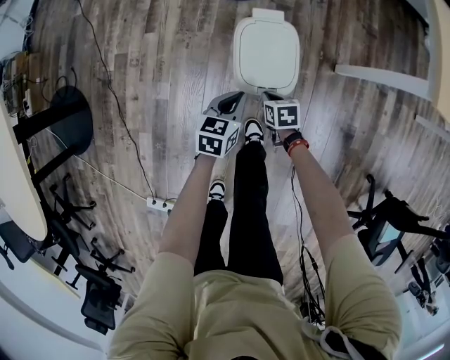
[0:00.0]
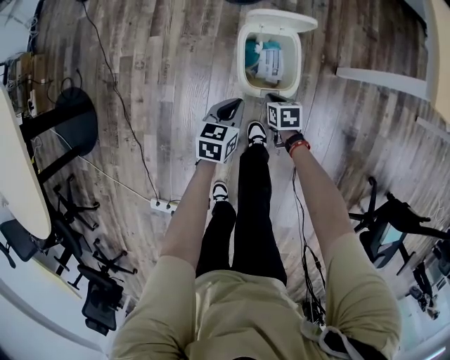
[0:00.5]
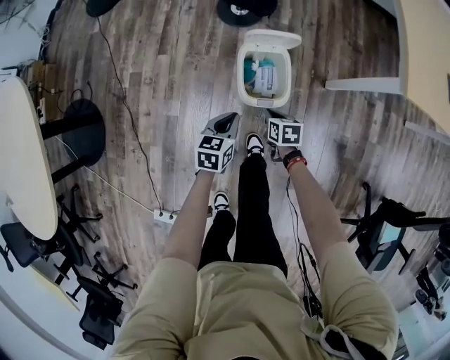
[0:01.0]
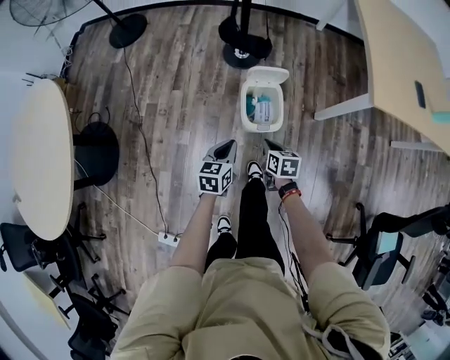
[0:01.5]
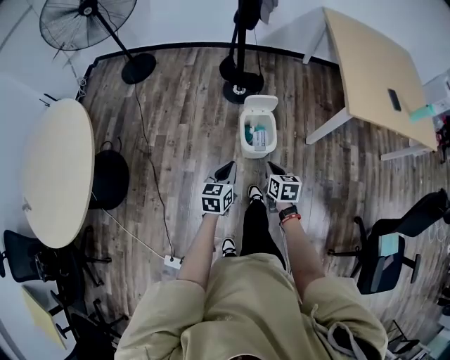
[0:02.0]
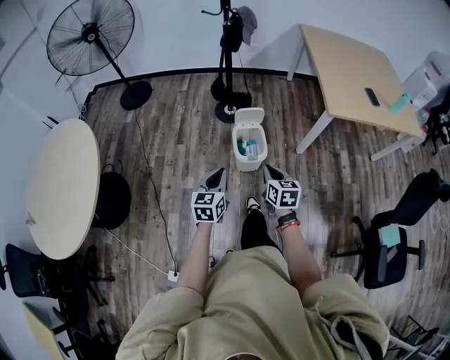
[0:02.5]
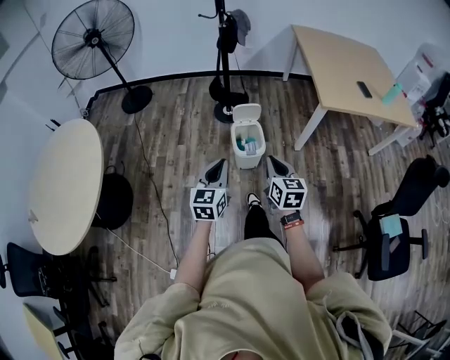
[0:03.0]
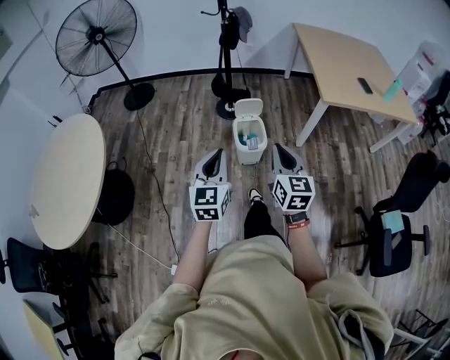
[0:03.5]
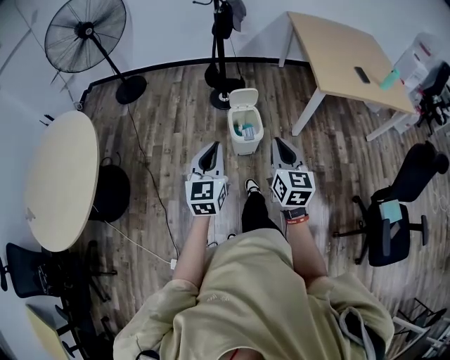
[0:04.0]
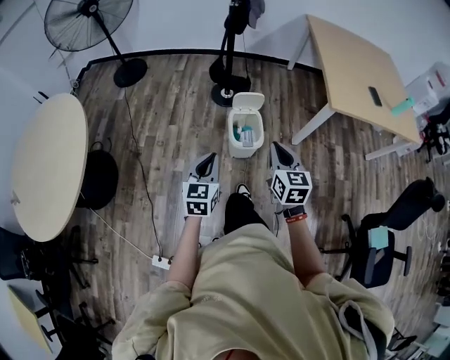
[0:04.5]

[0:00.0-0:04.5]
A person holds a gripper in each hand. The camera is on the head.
0:00.0 to 0:02.0: The two grippers go some 50 cm upward and backward. The right gripper turns by approximately 30 degrees.
0:02.0 to 0:04.5: The left gripper is displaced upward and backward by roughly 10 cm. The right gripper shifts roughly 20 cm upward, and turns by approximately 30 degrees.

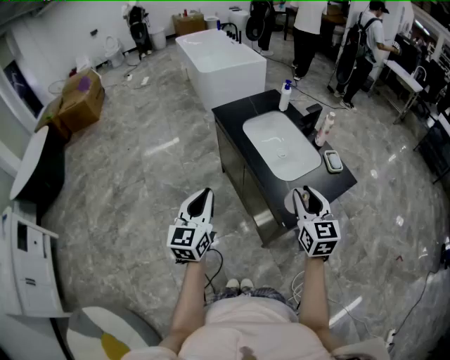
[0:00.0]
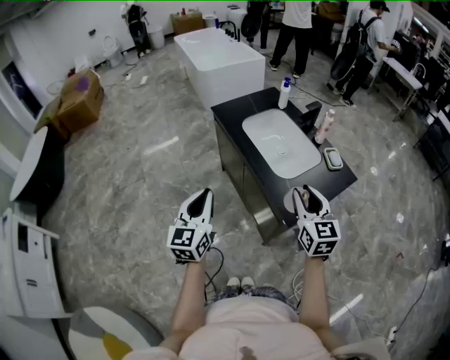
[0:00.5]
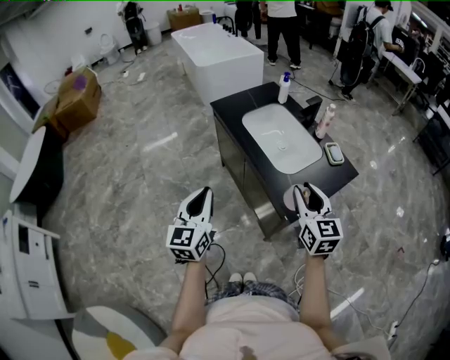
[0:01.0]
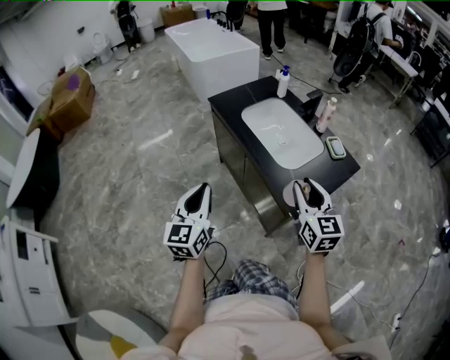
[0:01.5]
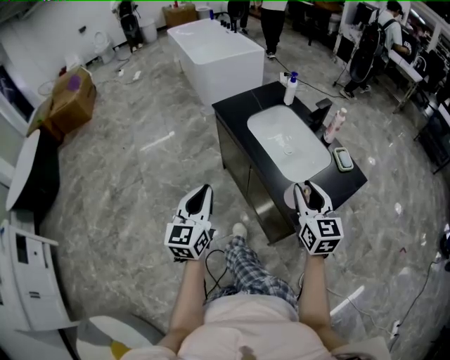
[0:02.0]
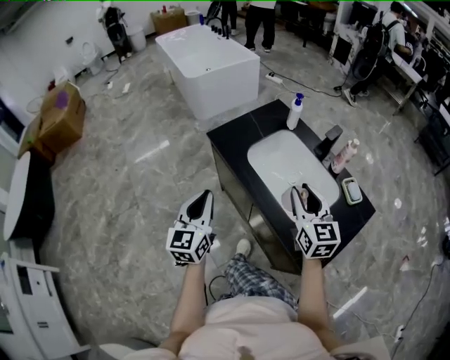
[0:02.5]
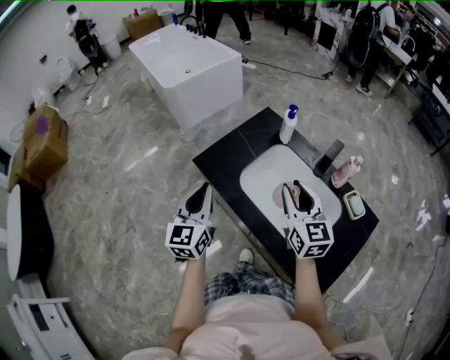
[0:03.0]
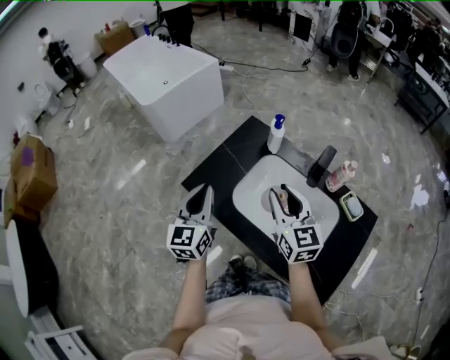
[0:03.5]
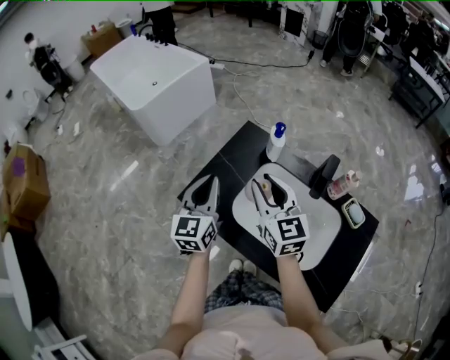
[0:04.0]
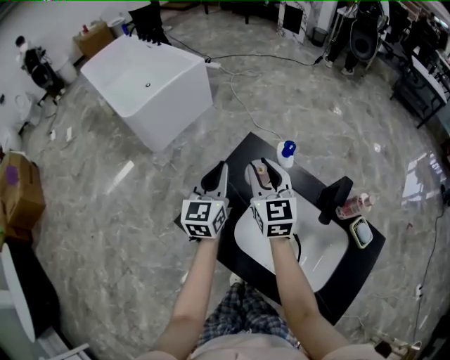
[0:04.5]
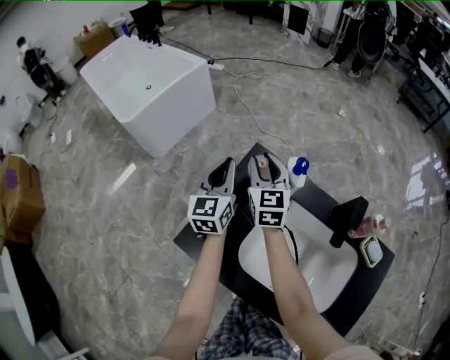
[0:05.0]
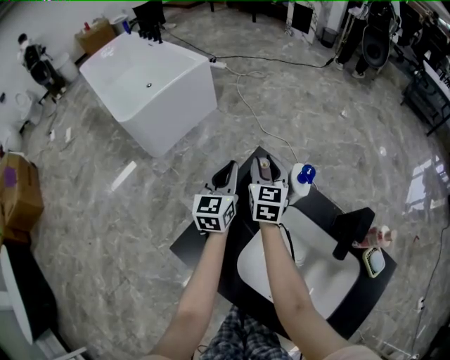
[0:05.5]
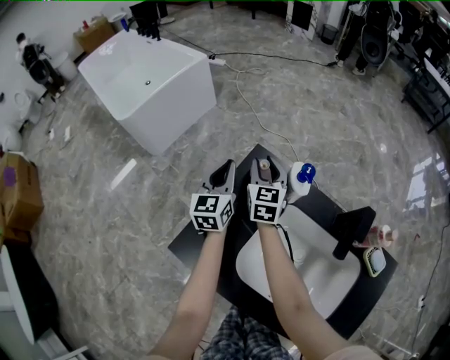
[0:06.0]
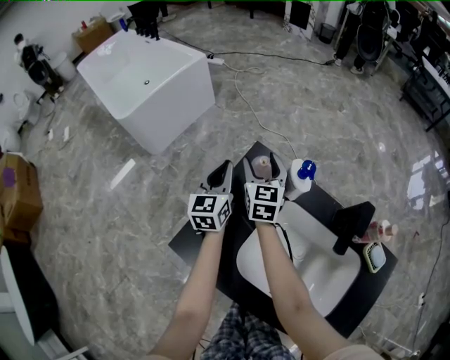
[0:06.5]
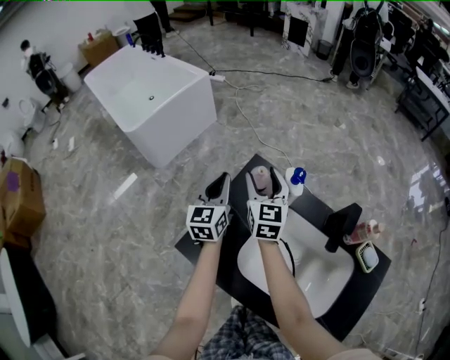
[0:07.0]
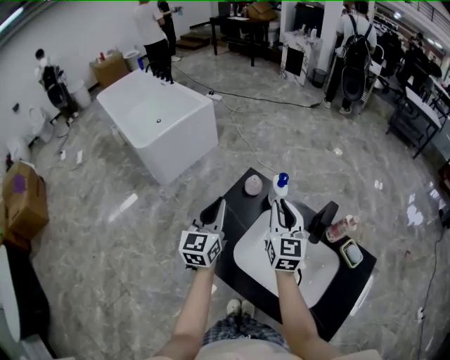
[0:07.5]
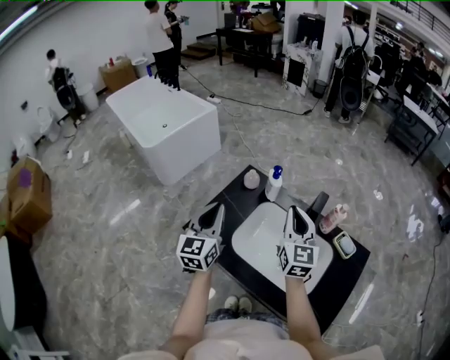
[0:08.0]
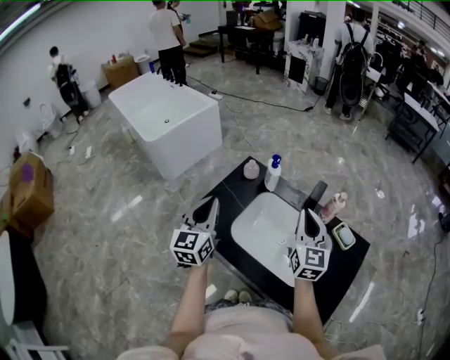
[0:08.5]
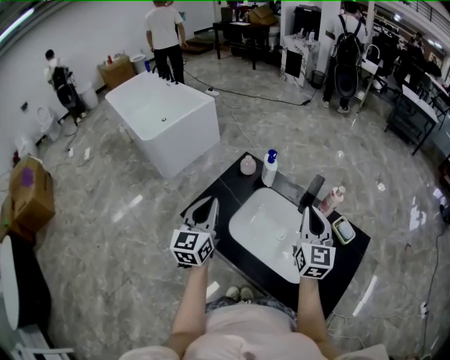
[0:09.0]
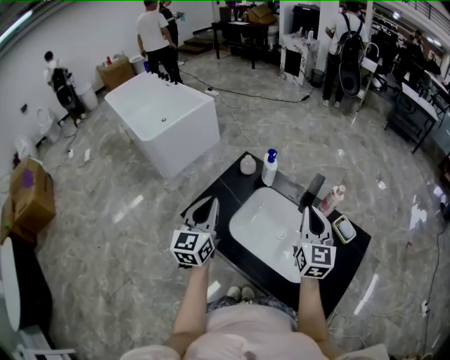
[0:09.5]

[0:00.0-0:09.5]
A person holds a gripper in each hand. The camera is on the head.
0:00.0 to 0:02.0: Both grippers move forward, roughly 5 cm.
0:02.0 to 0:04.0: The two grippers travel together, forward, approximately 50 cm. The left gripper turns by about 20 degrees.
0:04.0 to 0:05.5: The grippers both shift forward and downward by some 35 cm.
0:05.5 to 0:07.5: The right gripper moves backward, upward and to the right, some 30 cm, and opens, then closes again. Meanwhile the left gripper goes about 25 cm backward and upward.
0:07.5 to 0:09.5: The right gripper moves backward and to the right, about 20 cm, while the left gripper travels backward by approximately 15 cm.

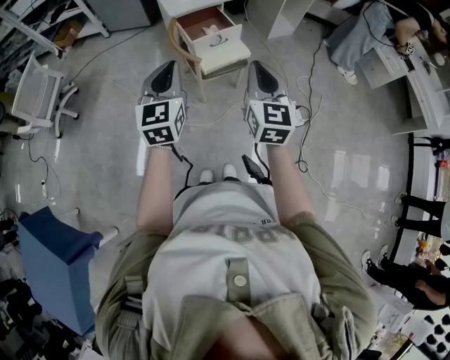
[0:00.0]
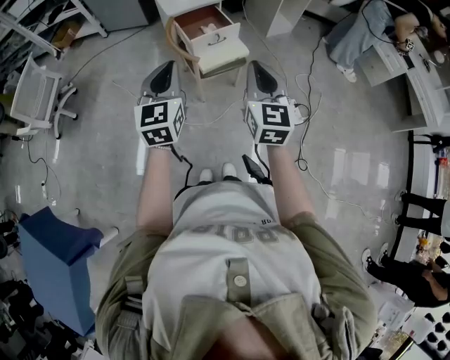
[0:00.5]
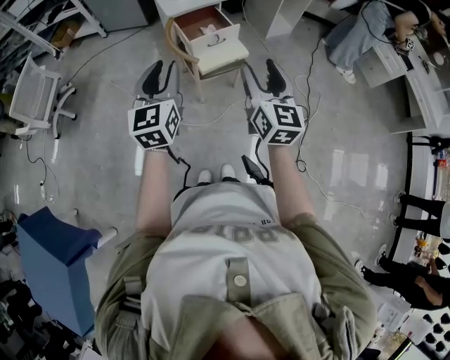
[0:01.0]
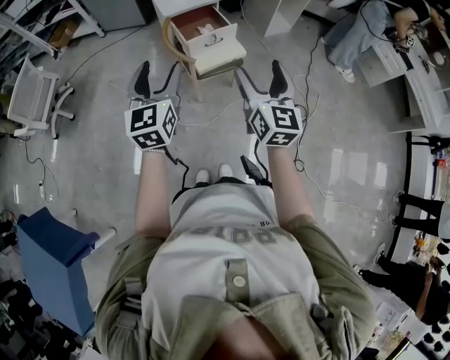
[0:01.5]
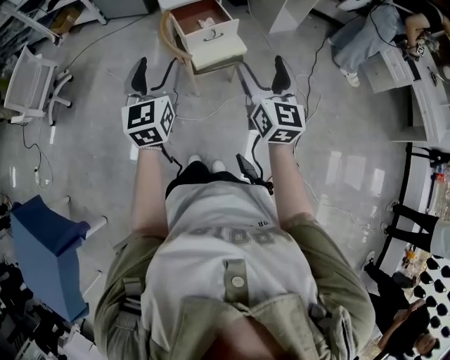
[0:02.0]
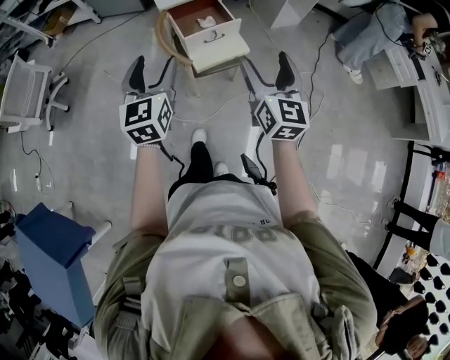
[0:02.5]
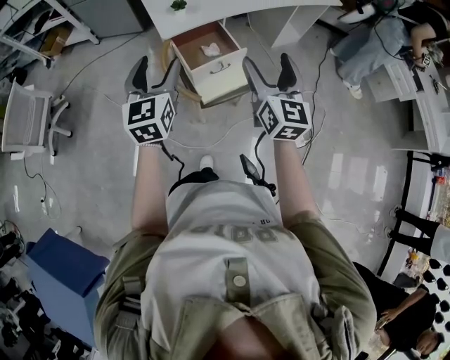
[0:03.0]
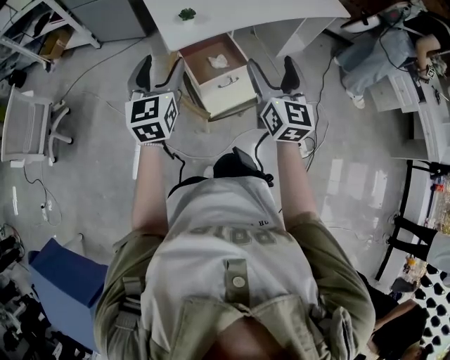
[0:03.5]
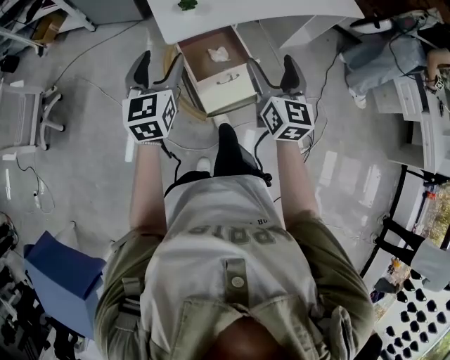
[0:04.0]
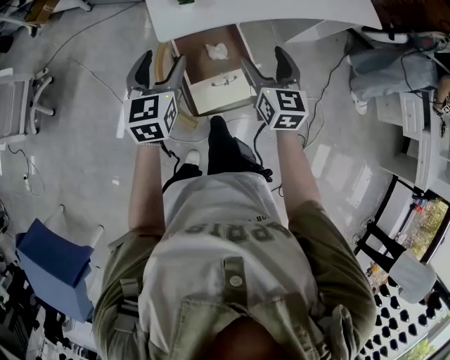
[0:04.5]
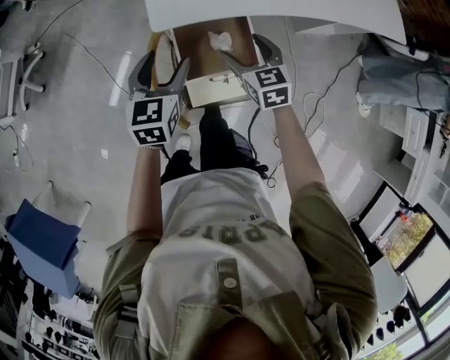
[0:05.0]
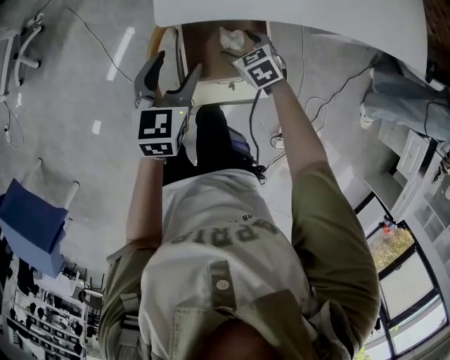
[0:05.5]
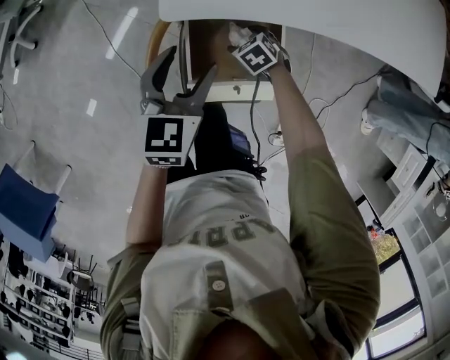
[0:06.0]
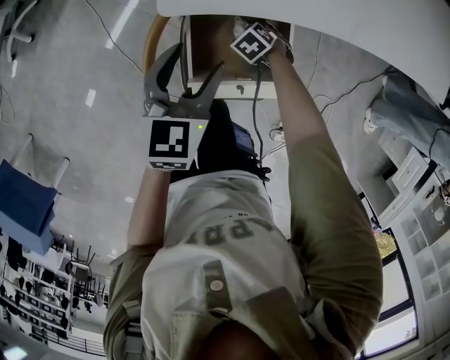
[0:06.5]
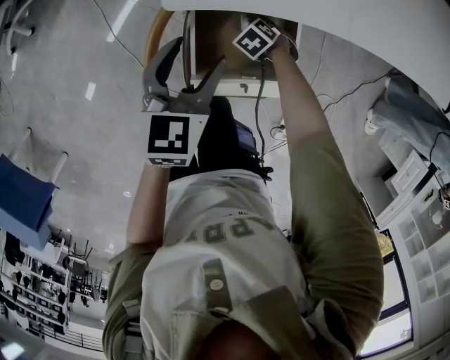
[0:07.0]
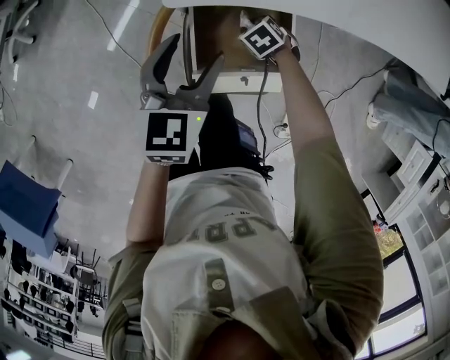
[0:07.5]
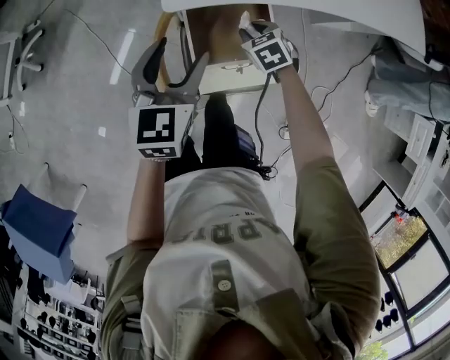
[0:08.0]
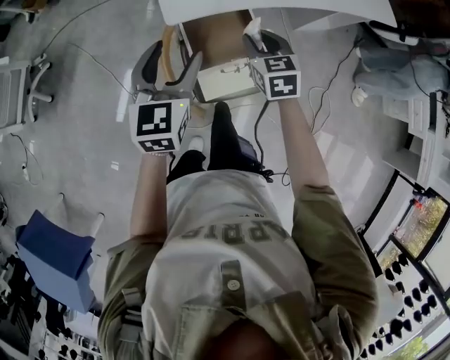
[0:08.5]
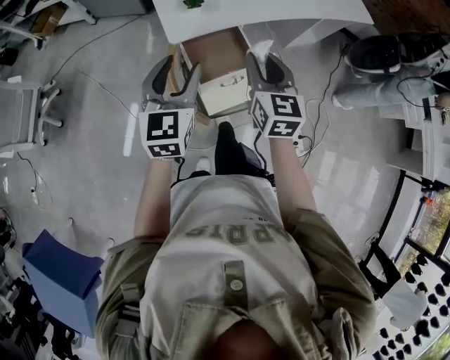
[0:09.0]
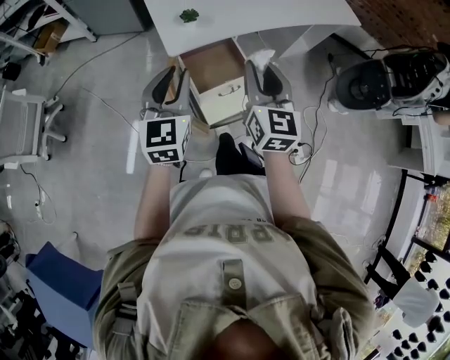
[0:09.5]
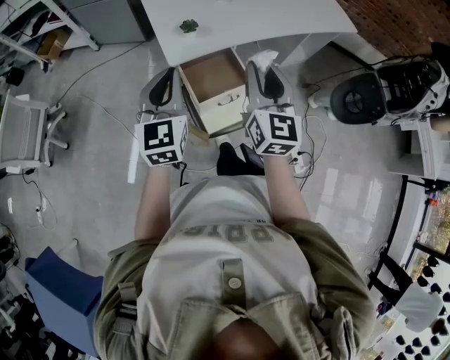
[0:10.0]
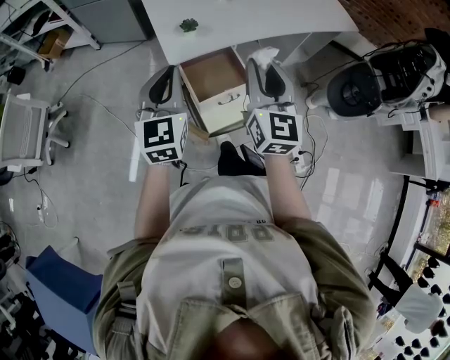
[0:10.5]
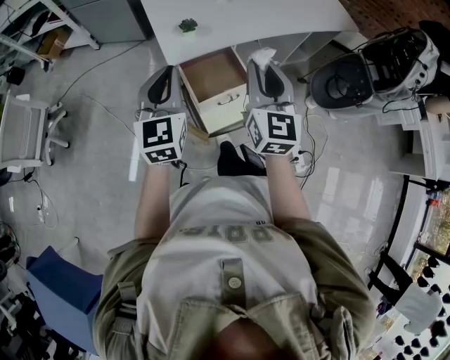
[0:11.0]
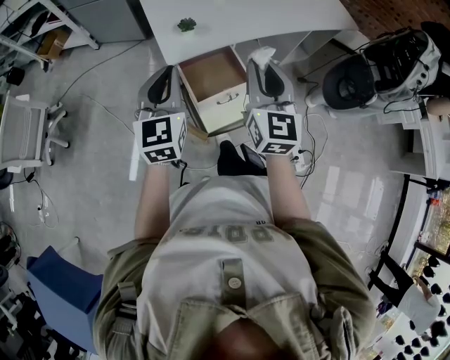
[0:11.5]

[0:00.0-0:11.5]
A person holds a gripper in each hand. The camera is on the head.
0:00.0 to 0:02.0: The right gripper travels to the right and forward by about 10 cm, and opens. Meanwhile the left gripper opens.
0:02.0 to 0:04.0: The grippers both shift forward by about 35 cm.
0:04.0 to 0:06.0: The left gripper is displaced downward by some 20 cm, and changes its angle by roughly 20 degrees, while the right gripper shifts approximately 50 cm downward, and tips its fingers downward by some 60 degrees.
0:06.0 to 0:07.5: The right gripper closes its fingers.
0:07.5 to 0:09.5: The right gripper moves upward, some 50 cm, and tips its fingers upward by some 70 degrees. Meanwhile the left gripper heads upward, covering some 25 cm, rotates some 30 degrees, and closes its fingers.
0:09.5 to 0:11.5: The grippers move only a little.

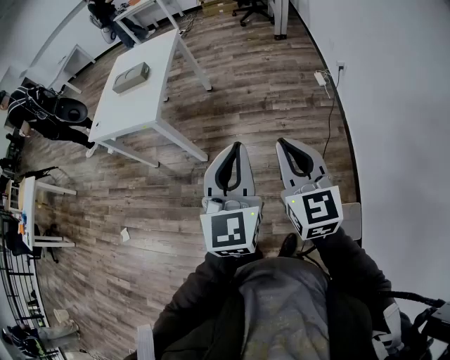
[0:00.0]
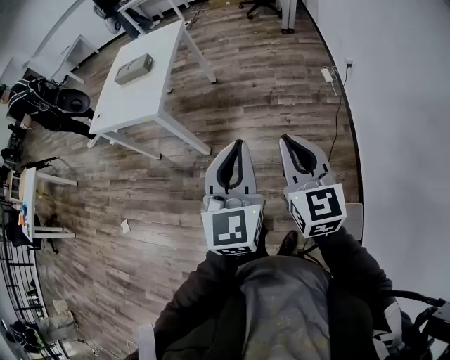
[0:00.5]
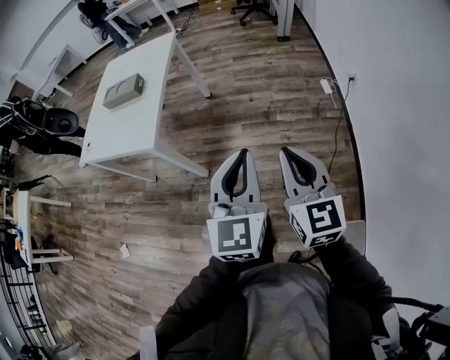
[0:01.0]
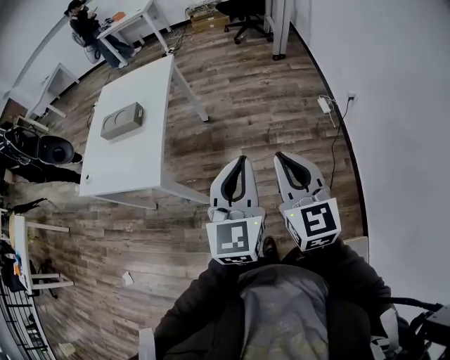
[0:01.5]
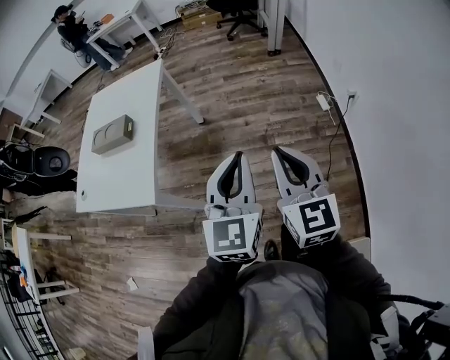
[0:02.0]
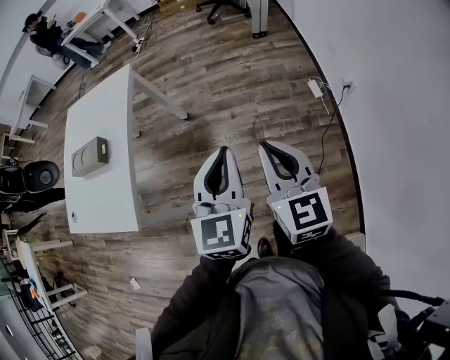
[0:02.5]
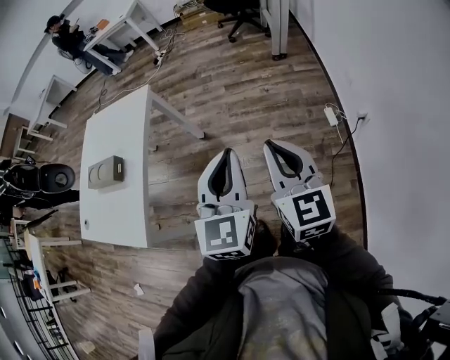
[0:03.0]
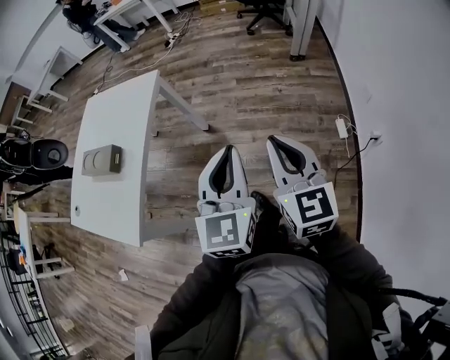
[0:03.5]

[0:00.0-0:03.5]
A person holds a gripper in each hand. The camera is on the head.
0:00.0 to 0:02.0: Both grippers move forward, some 35 cm.
0:02.0 to 0:03.5: Both grippers travel together forward, some 25 cm.
